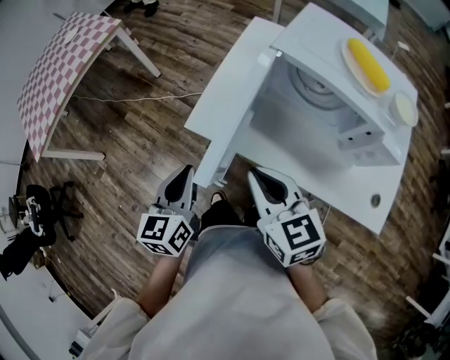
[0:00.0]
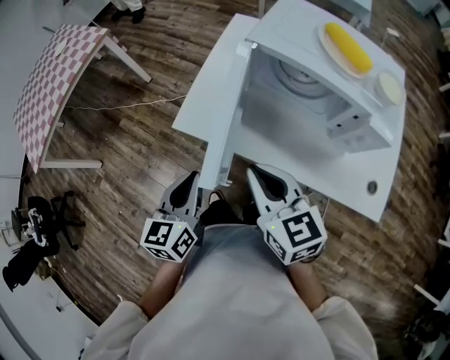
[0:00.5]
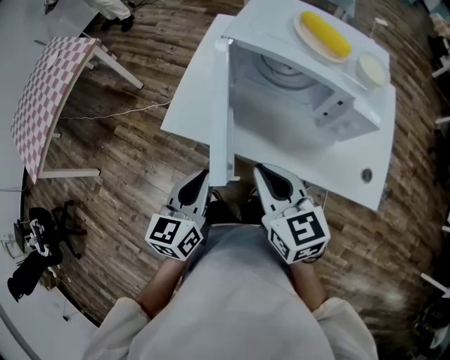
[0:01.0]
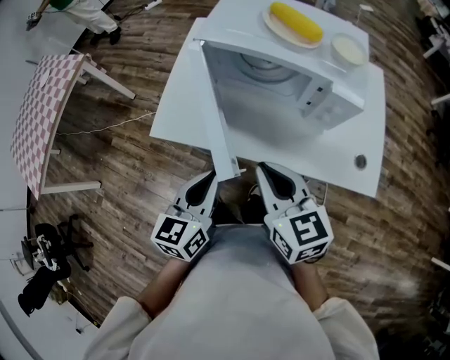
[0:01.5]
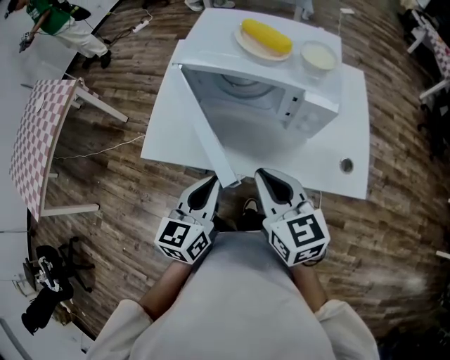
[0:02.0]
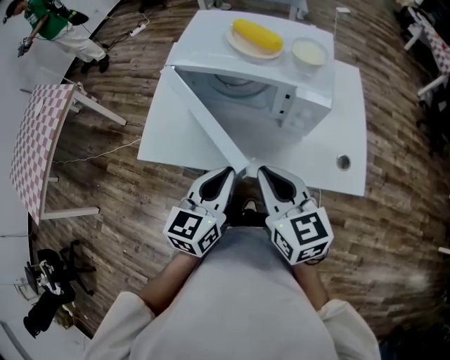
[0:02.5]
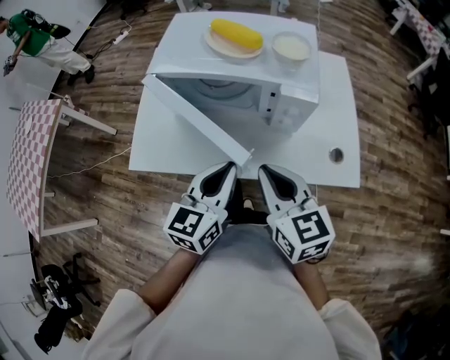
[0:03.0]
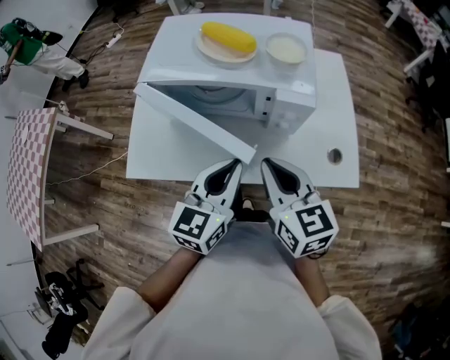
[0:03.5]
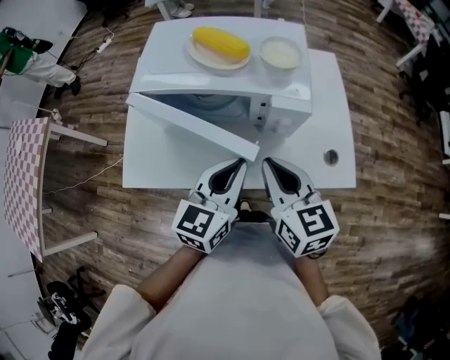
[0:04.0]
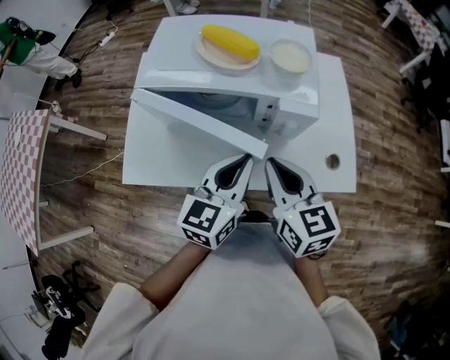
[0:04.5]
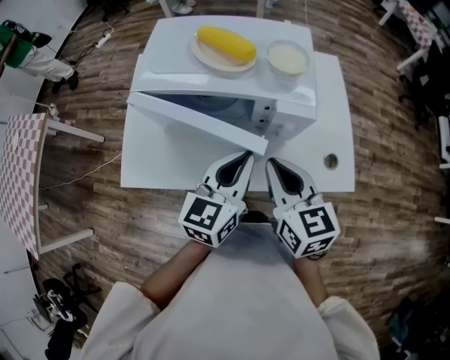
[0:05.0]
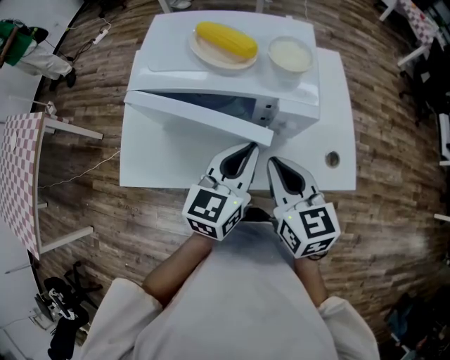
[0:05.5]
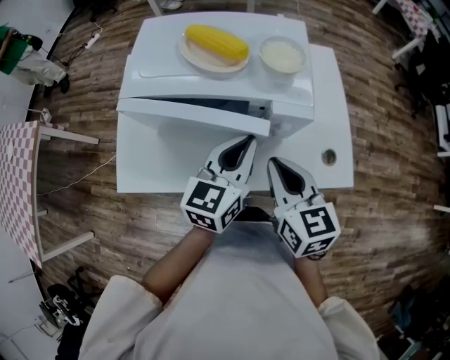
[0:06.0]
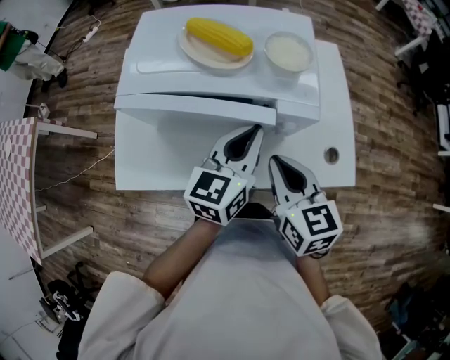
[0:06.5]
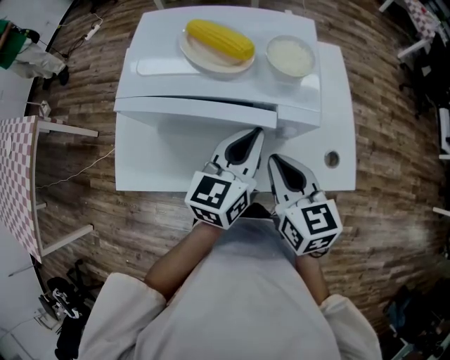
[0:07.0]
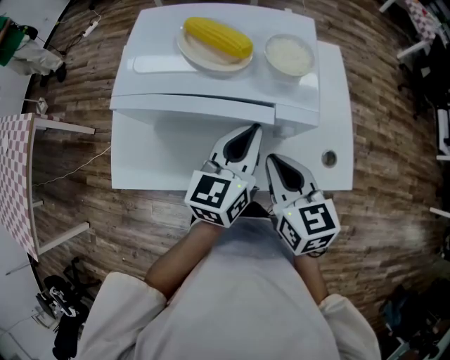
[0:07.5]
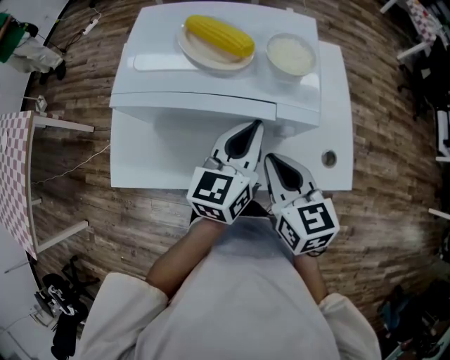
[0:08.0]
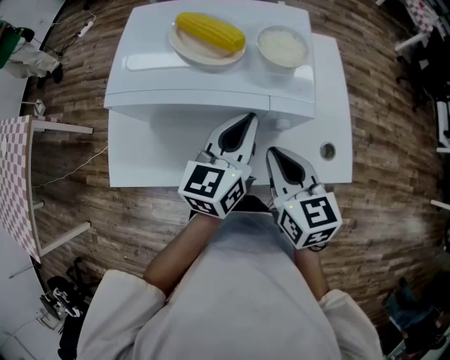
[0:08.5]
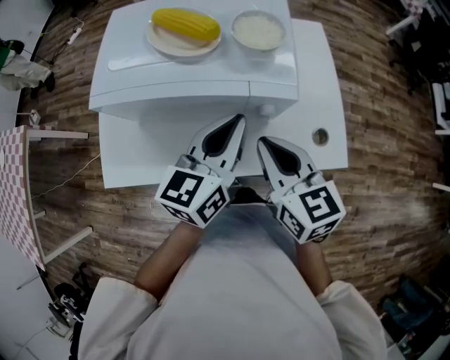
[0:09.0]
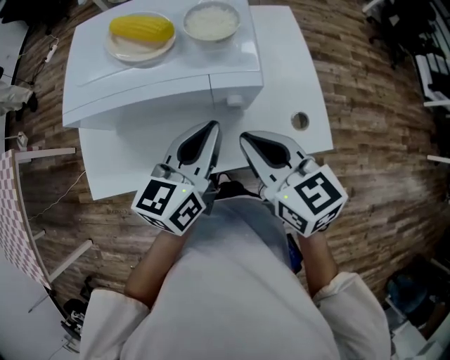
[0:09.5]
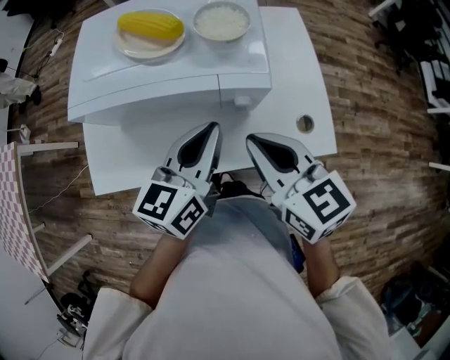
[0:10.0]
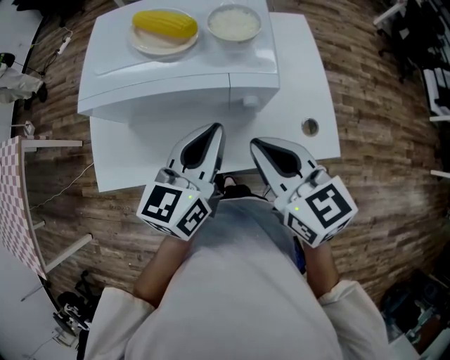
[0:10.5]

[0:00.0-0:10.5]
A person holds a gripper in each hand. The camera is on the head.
0:00.0 to 0:02.0: The two grippers go approximately 20 cm to the right. The left gripper rotates roughly 30 degrees.
0:02.0 to 0:04.0: The right gripper is displaced to the right and forward by about 10 cm, while the left gripper is displaced to the right and forward by approximately 15 cm.
0:04.0 to 0:06.5: The left gripper moves forward, about 10 cm.
0:06.5 to 0:08.5: The grippers move only a little.
0:08.5 to 0:10.5: The right gripper shifts roughly 5 cm upward. The left gripper goes approximately 5 cm backward.

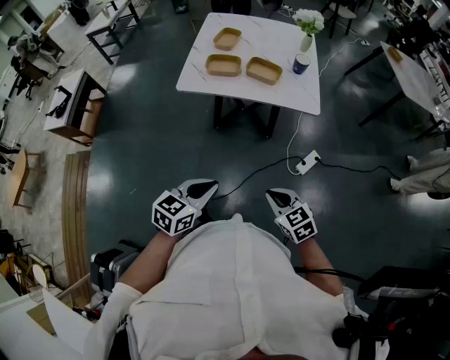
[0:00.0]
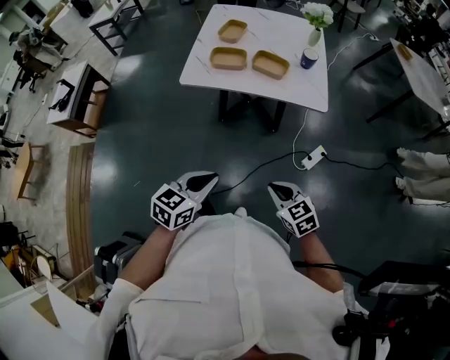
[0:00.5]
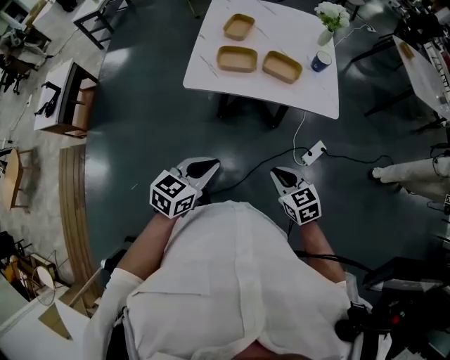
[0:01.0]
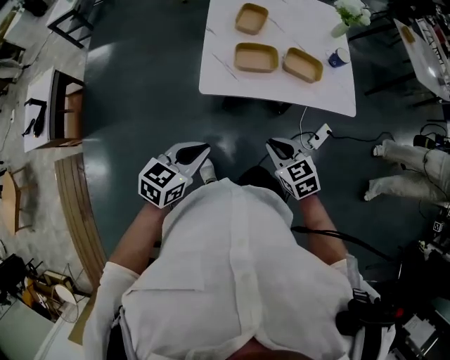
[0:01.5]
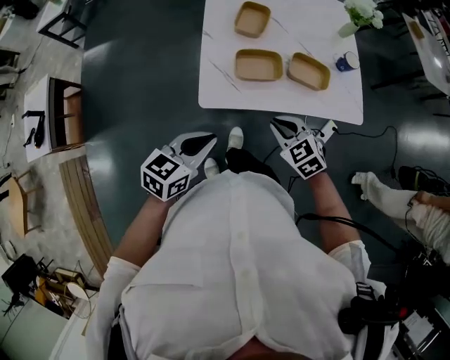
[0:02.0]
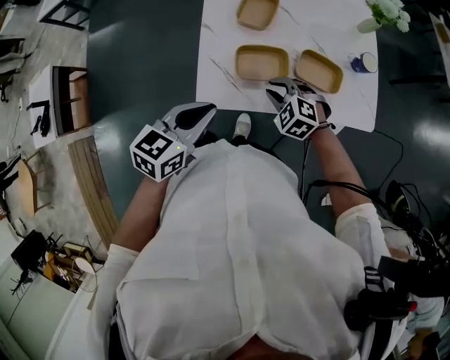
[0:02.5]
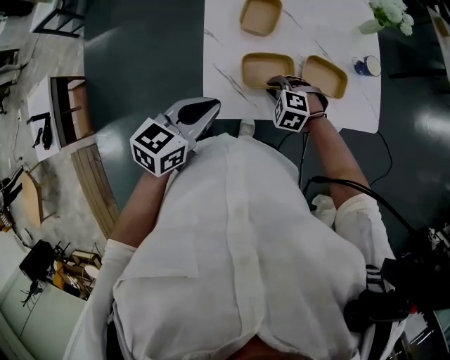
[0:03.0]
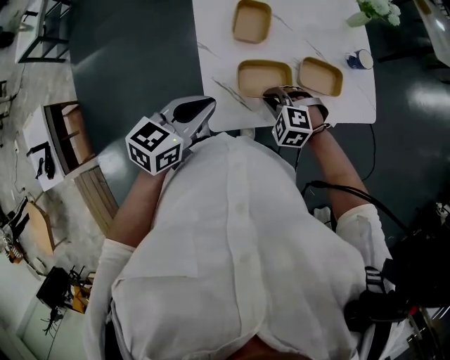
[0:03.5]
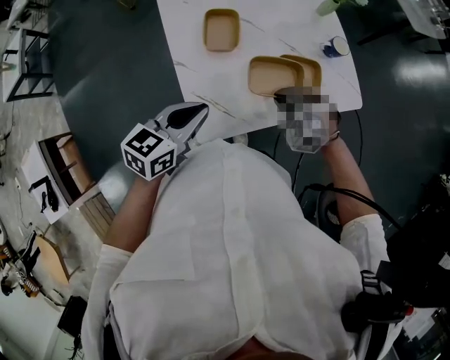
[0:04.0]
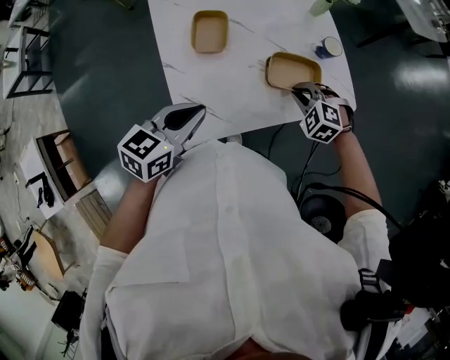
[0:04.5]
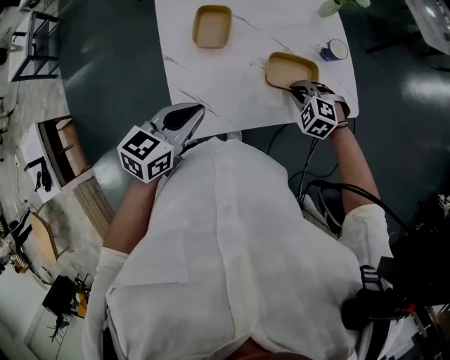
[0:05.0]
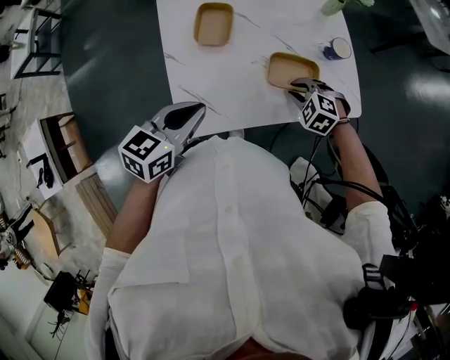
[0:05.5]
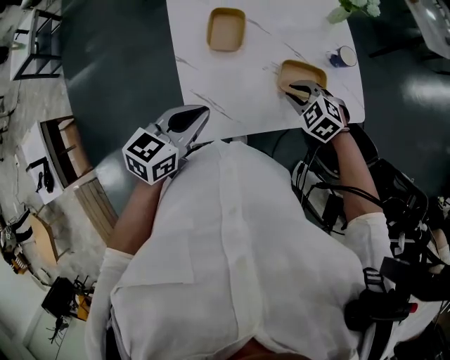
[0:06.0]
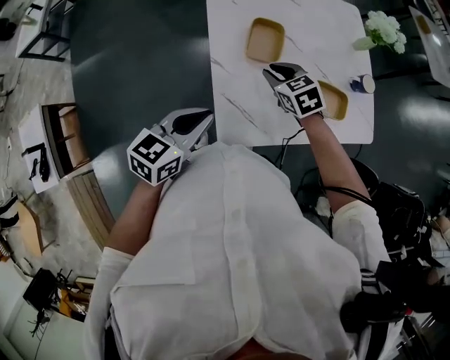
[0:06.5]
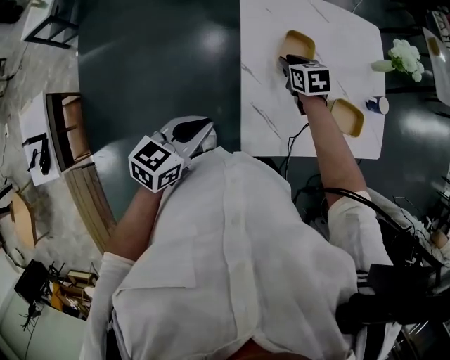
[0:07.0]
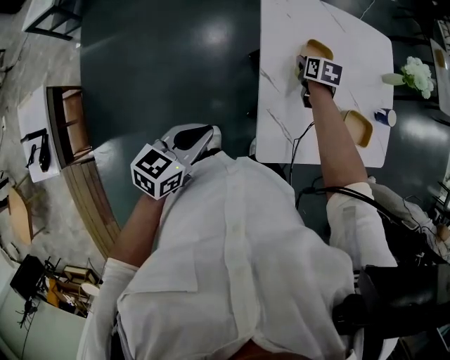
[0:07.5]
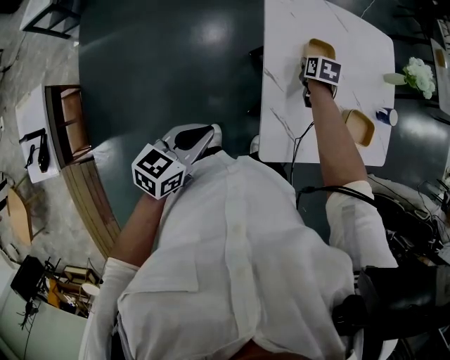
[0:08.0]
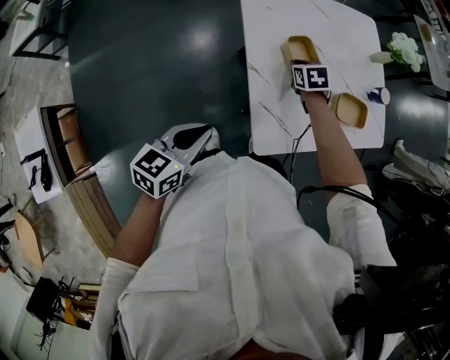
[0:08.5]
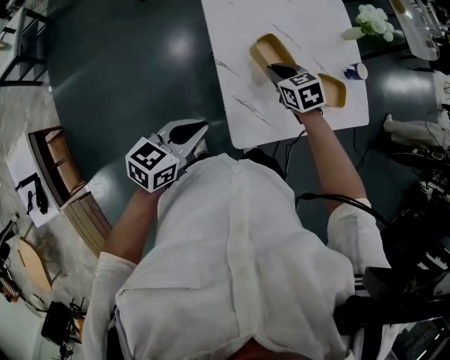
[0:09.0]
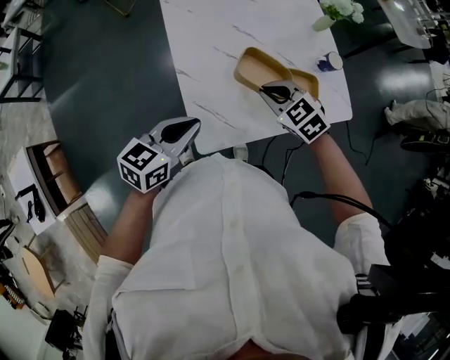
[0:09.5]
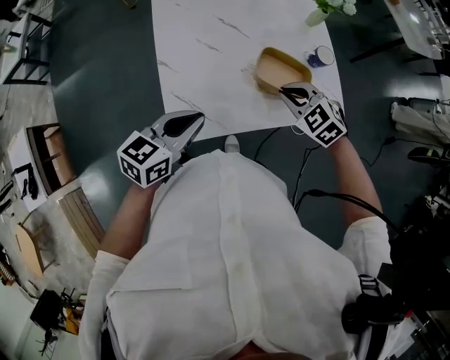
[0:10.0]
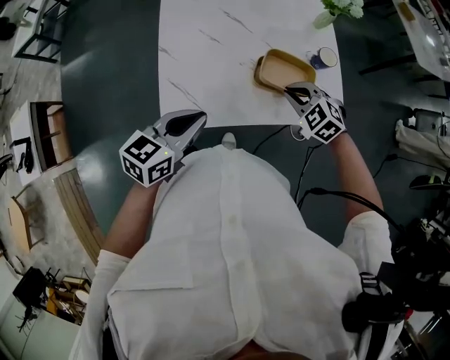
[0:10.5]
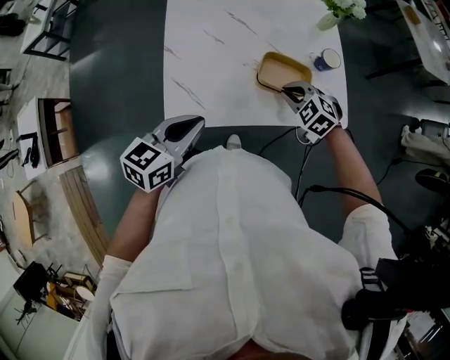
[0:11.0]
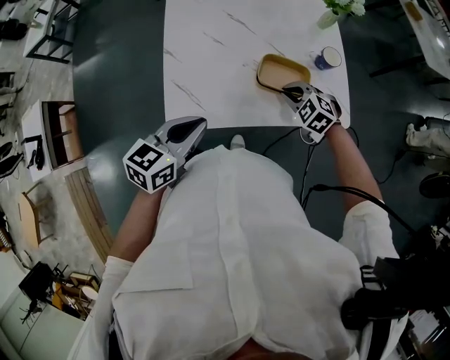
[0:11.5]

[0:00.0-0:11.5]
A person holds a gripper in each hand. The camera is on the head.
0:00.0 to 0:02.0: Both grippers move forward and to the left, approximately 40 cm.
0:02.0 to 0:04.0: The grippers both shift forward by some 20 cm. The right gripper changes its angle by approximately 30 degrees.
0:06.0 to 0:07.5: The right gripper goes roughly 30 cm to the left and forward, and rolls clockwise, seen from behind, by some 60 degrees. Meanwhile the left gripper is displaced to the left by some 25 cm.
0:07.5 to 0:09.5: The right gripper goes approximately 25 cm backward, to the right and upward, and twists some 40 degrees counterclockwise, seen from behind. The left gripper is displaced to the right by roughly 20 cm.
0:09.5 to 0:11.5: The right gripper moves to the right and downward, roughly 20 cm, and turns by some 20 degrees; the left gripper shifts roughly 15 cm to the right and backward.

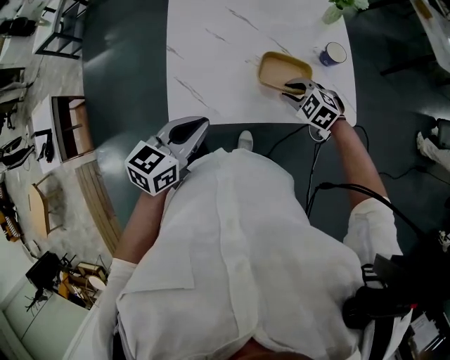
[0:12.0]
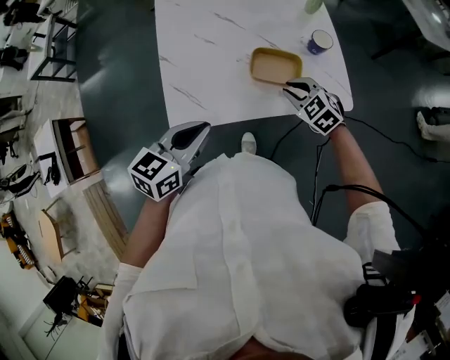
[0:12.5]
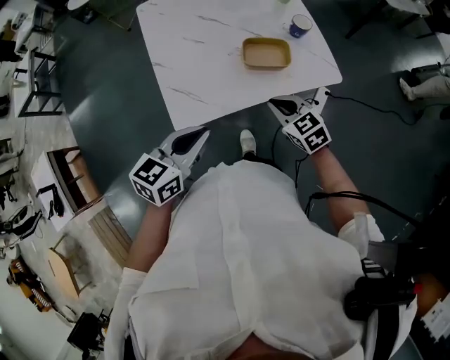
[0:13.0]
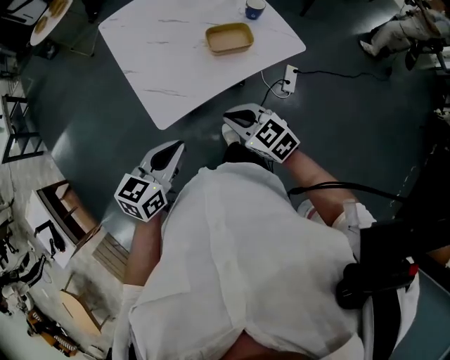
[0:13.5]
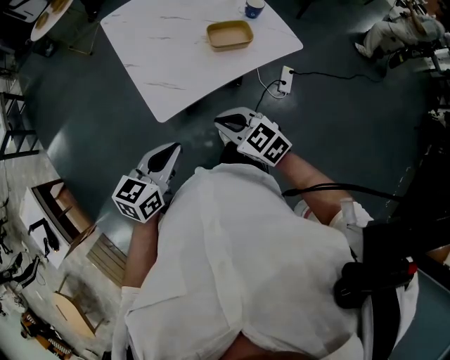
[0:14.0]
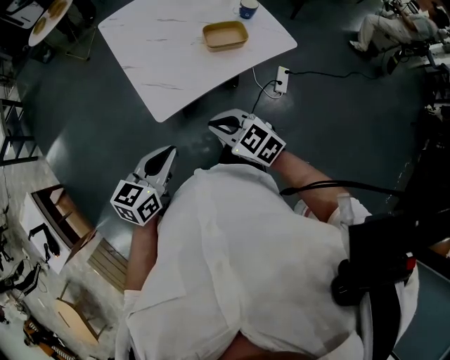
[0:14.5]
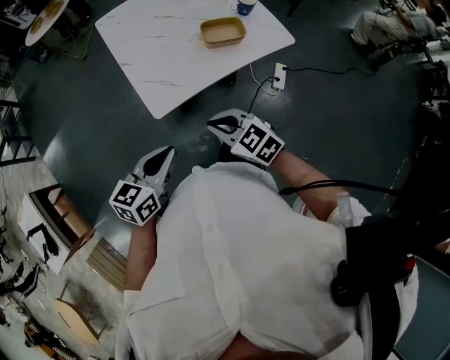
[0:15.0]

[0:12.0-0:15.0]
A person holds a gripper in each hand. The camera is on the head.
0:12.0 to 0:13.5: The left gripper heads backward and to the left, covering about 15 cm. The right gripper is displaced backward, to the left and upward by roughly 30 cm, and turns by about 40 degrees.
0:13.5 to 0:15.0: The left gripper moves backward, roughly 5 cm. Meanwhile the right gripper heads backward and to the left, covering about 10 cm.

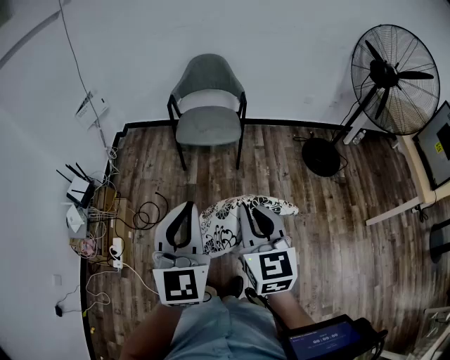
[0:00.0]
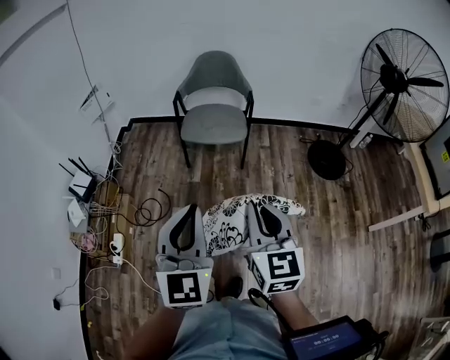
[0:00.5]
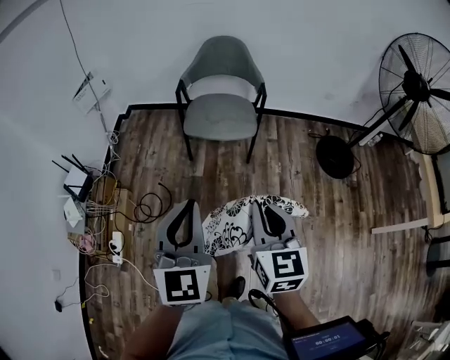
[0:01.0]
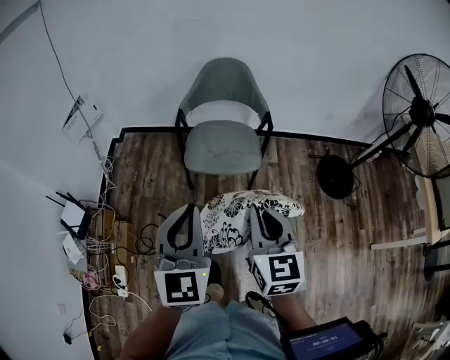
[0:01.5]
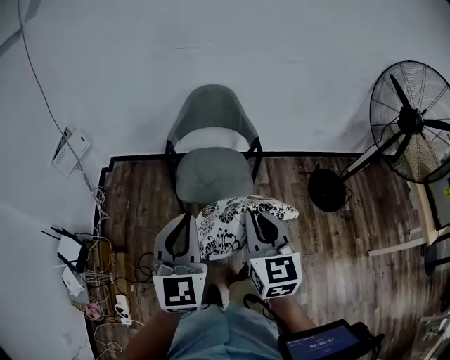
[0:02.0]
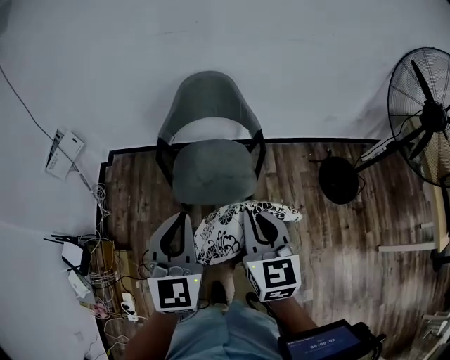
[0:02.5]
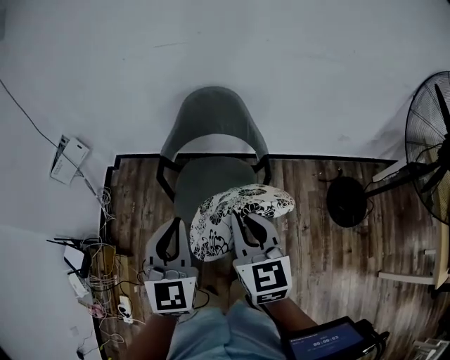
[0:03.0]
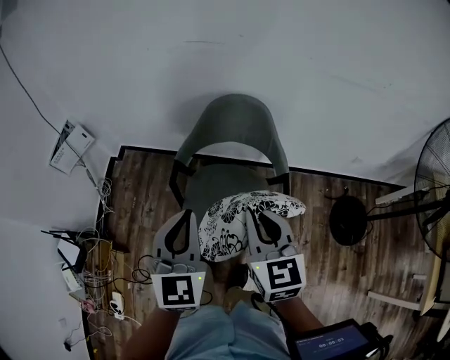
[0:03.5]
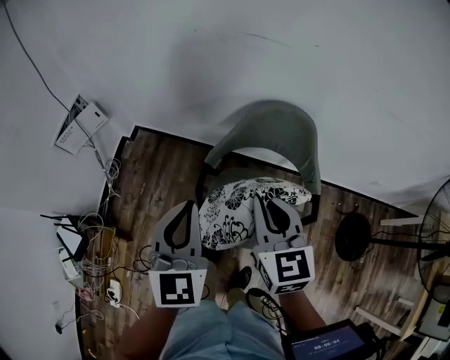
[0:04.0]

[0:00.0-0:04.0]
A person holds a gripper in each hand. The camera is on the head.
0:00.0 to 0:02.0: Both grippers travel together forward, about 40 cm.
0:02.0 to 0:04.0: Both grippers move forward, approximately 40 cm. The right gripper turns by about 20 degrees.
